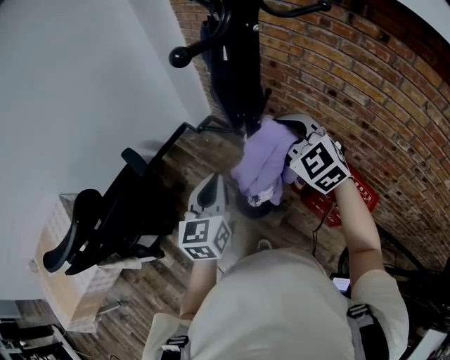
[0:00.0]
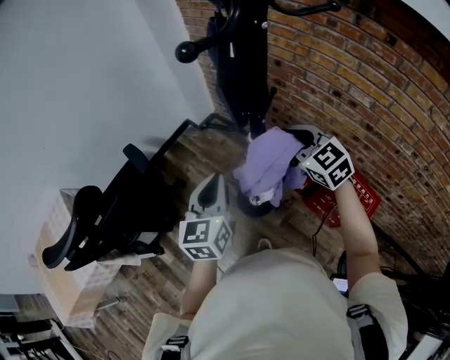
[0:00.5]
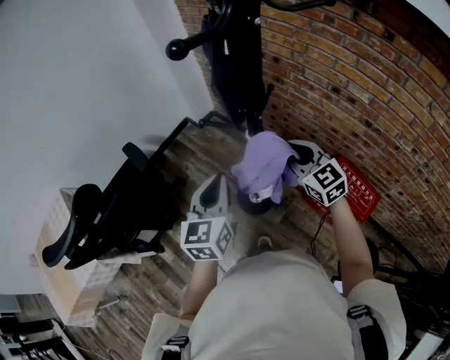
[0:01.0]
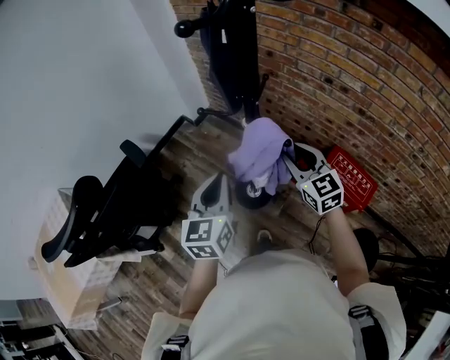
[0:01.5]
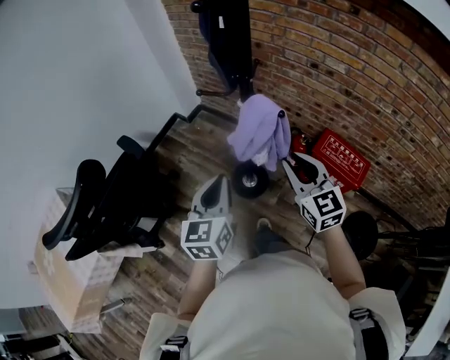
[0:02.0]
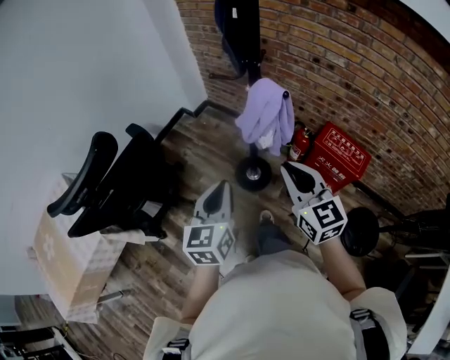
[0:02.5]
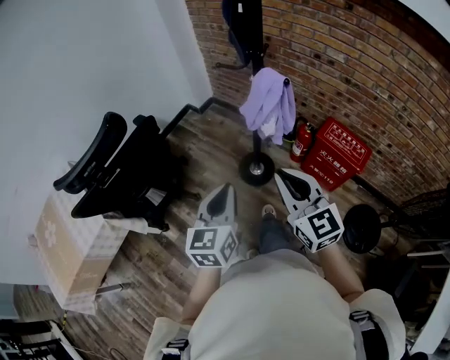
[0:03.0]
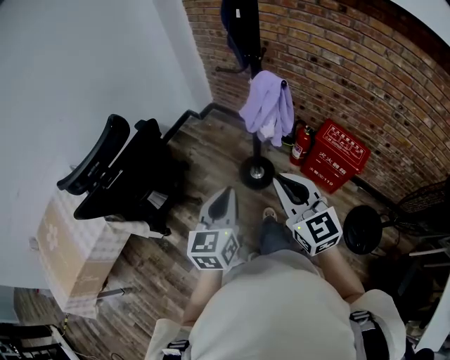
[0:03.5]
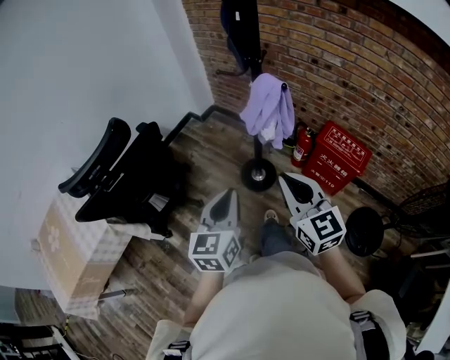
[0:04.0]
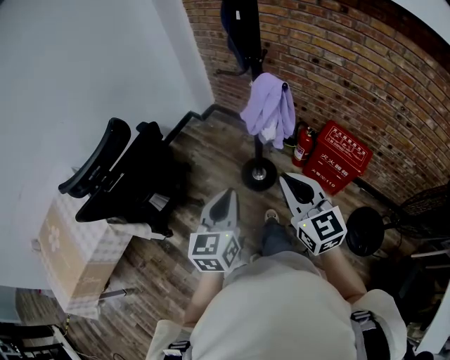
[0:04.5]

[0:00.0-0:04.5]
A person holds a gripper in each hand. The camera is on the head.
0:00.0 to 0:02.0: The left gripper goes approximately 10 cm backward, while the right gripper is displaced backward by about 20 cm, and turns by roughly 40 degrees.
0:02.0 to 0:04.5: The left gripper moves backward, roughly 15 cm; the right gripper heads backward and to the left, covering some 20 cm.

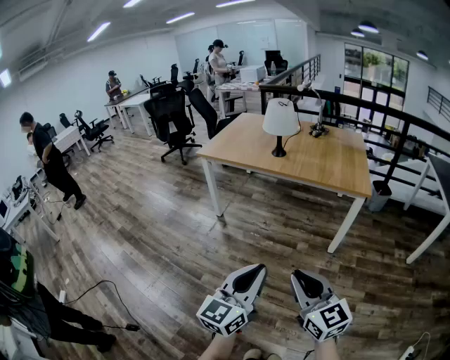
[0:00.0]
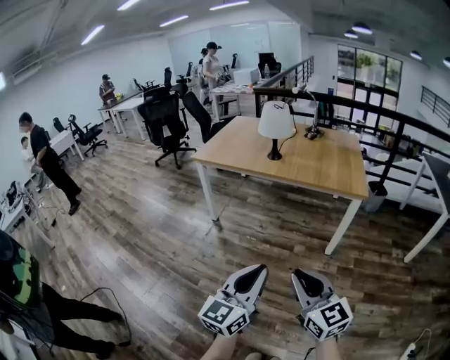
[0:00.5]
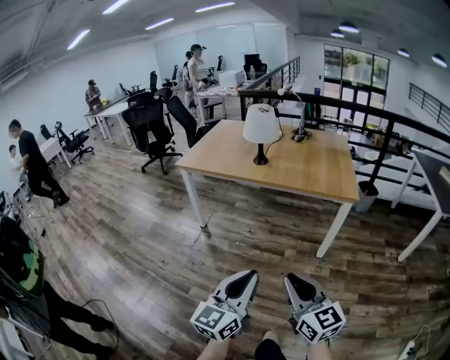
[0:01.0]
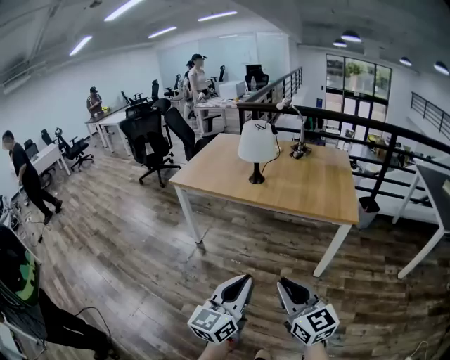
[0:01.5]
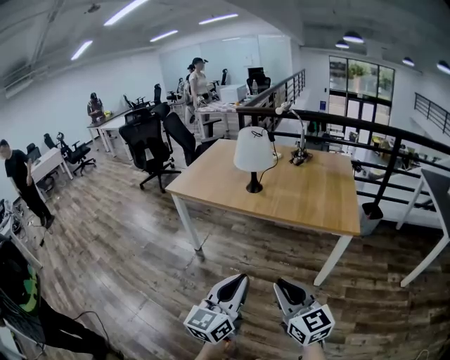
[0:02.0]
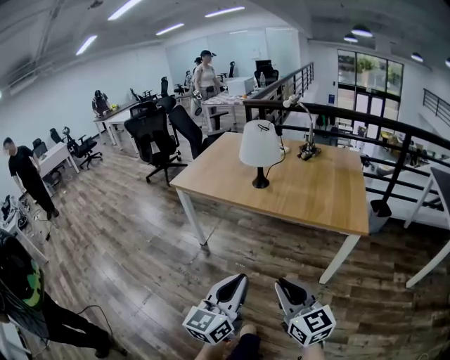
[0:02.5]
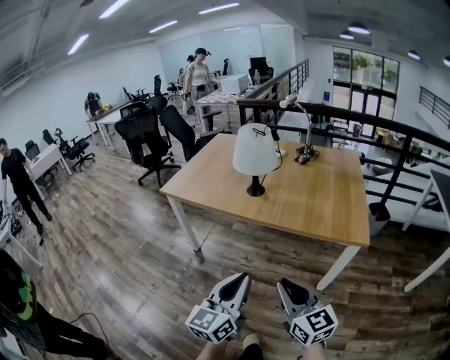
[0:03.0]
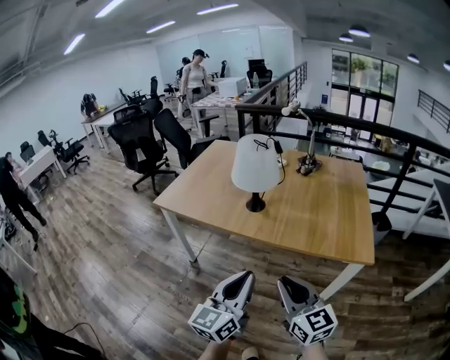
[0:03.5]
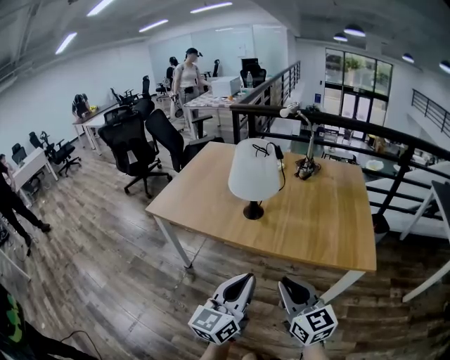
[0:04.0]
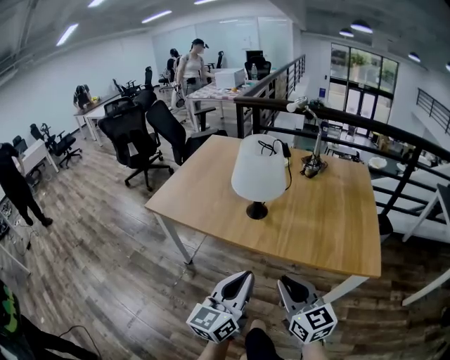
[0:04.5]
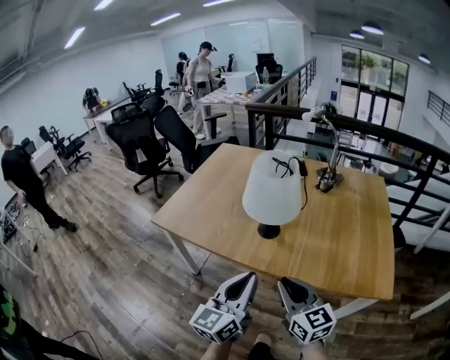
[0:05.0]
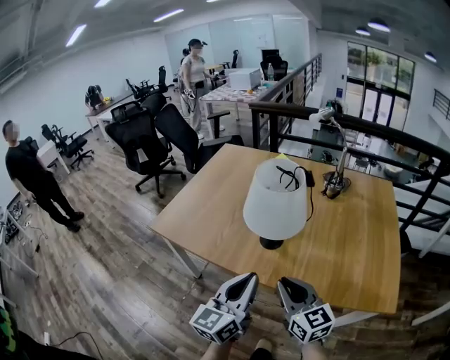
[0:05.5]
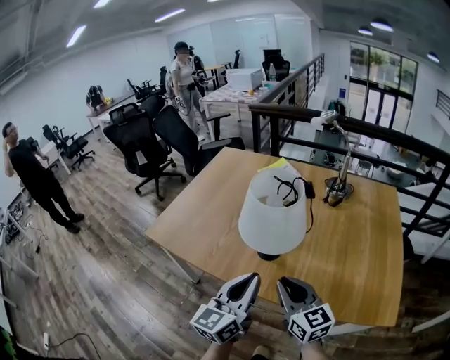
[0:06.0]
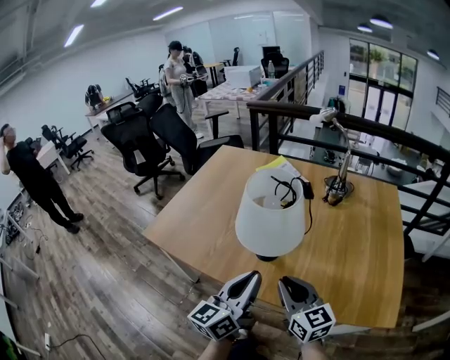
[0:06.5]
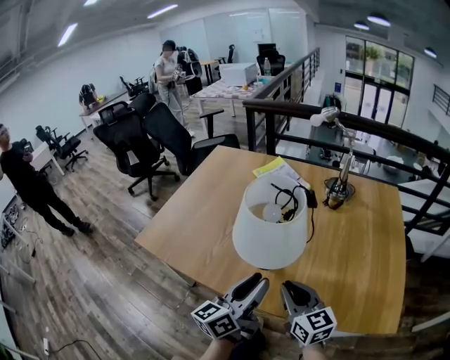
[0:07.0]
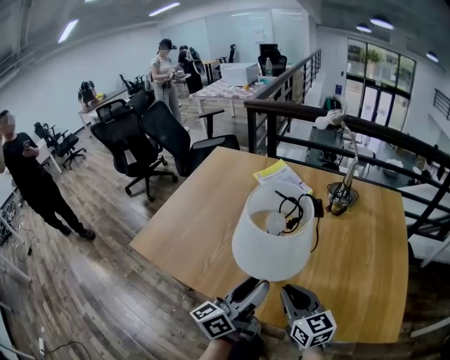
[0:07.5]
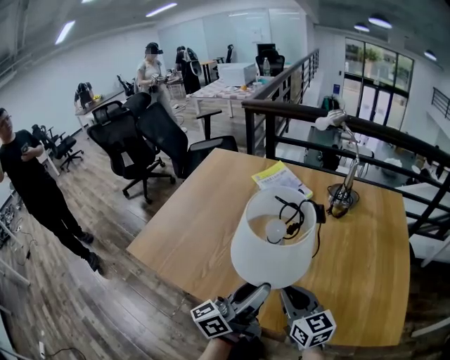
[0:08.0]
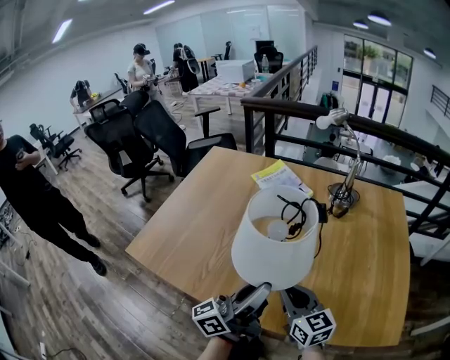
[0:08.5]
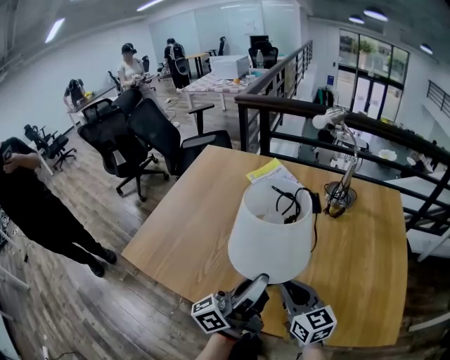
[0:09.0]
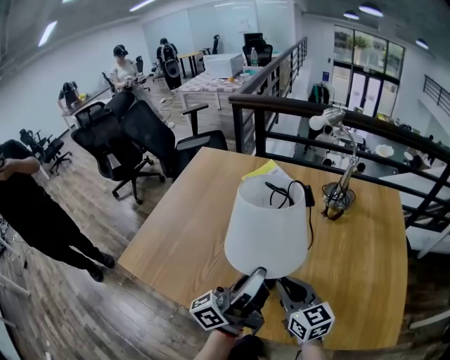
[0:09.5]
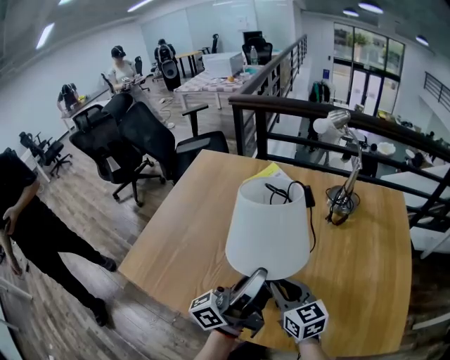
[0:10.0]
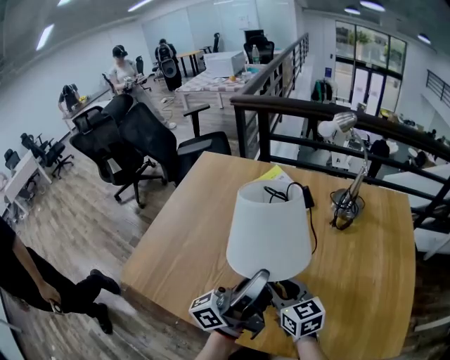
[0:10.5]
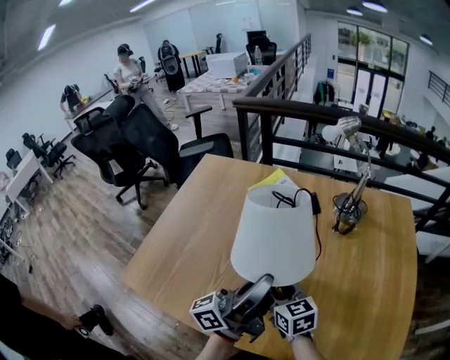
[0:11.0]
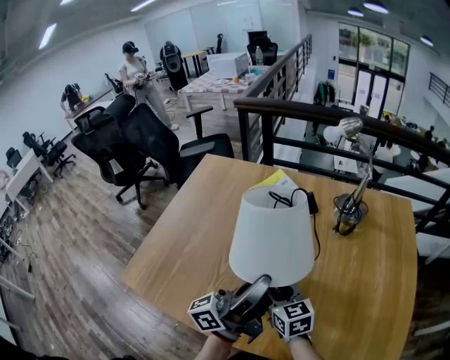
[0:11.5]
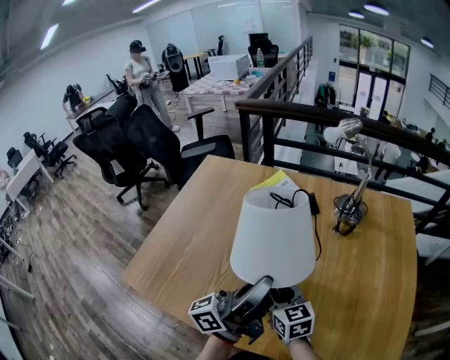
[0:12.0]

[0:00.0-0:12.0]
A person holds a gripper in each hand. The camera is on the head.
0:00.0 to 0:02.0: The two grippers go approximately 20 cm forward.
0:02.0 to 0:04.0: The two grippers go about 25 cm forward.
0:04.0 to 0:06.0: Both grippers move forward, some 25 cm.
0:06.0 to 0:08.0: The right gripper is displaced forward and downward by roughly 10 cm. The left gripper goes roughly 10 cm forward, changes its angle by approximately 40 degrees, and opens up.
0:08.0 to 0:10.0: The left gripper is displaced forward and upward by approximately 10 cm, and closes its fingers; the right gripper heads forward, covering about 10 cm.
0:10.0 to 0:12.0: The right gripper ends up roughly 5 cm from where it was, and opens up.

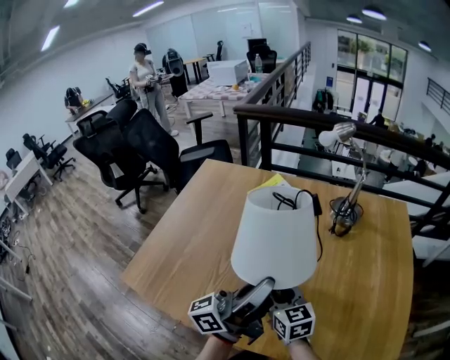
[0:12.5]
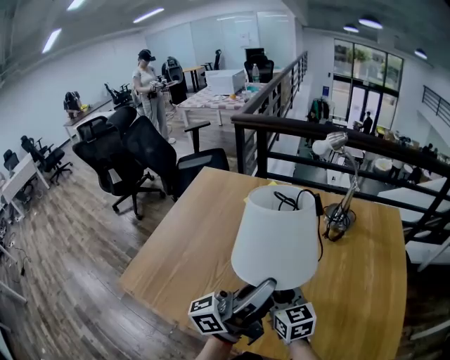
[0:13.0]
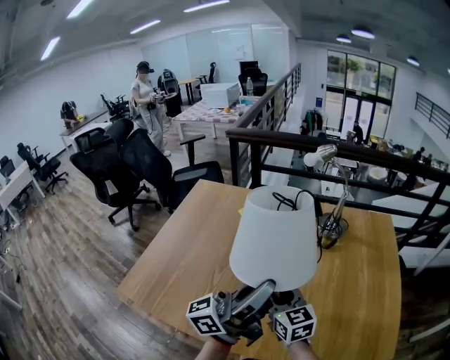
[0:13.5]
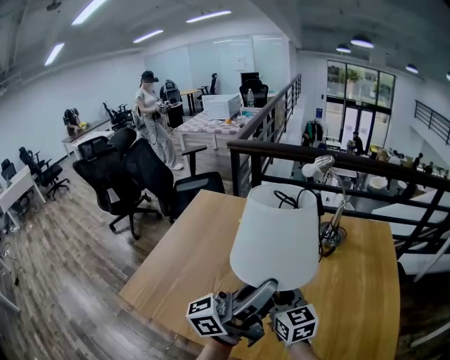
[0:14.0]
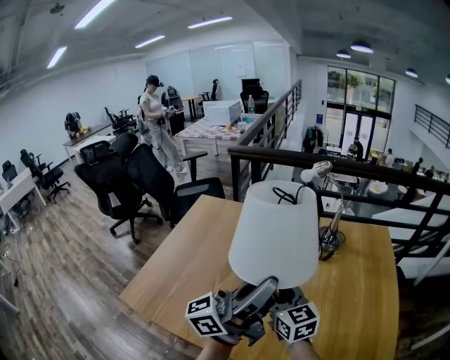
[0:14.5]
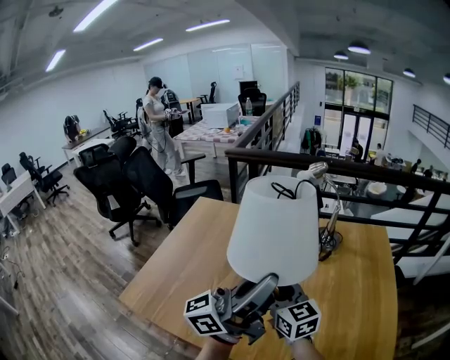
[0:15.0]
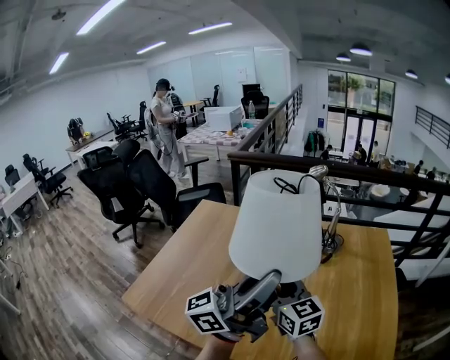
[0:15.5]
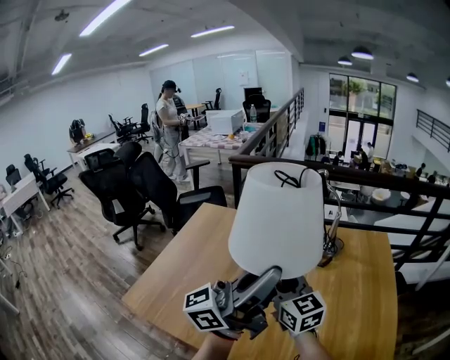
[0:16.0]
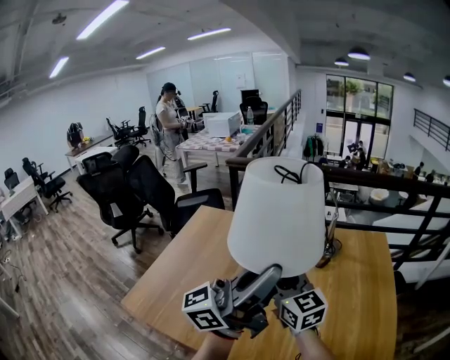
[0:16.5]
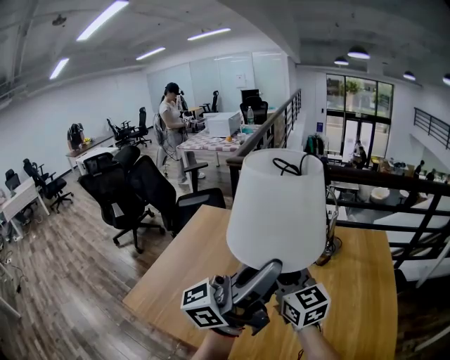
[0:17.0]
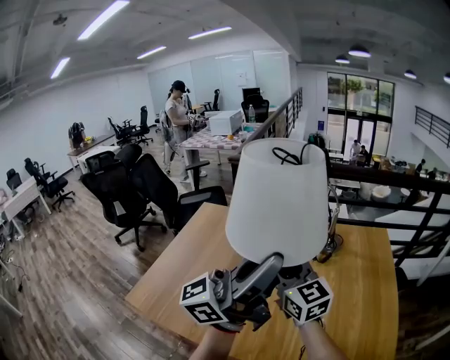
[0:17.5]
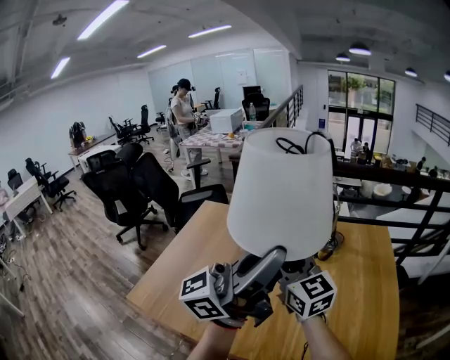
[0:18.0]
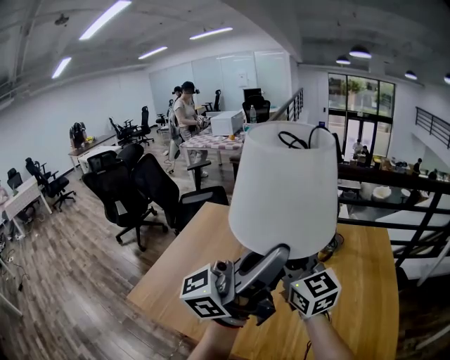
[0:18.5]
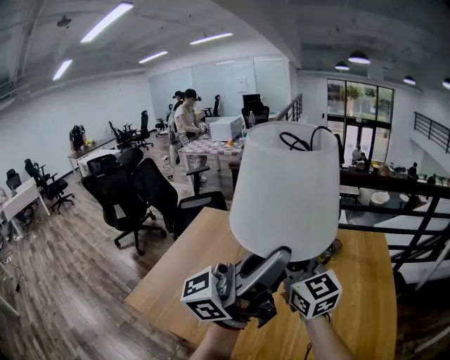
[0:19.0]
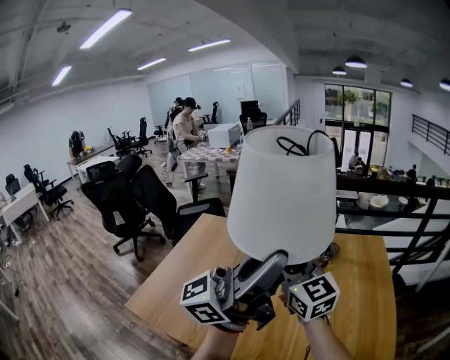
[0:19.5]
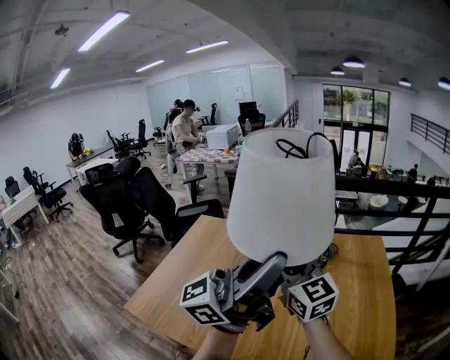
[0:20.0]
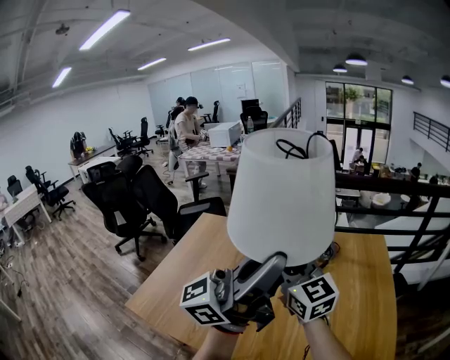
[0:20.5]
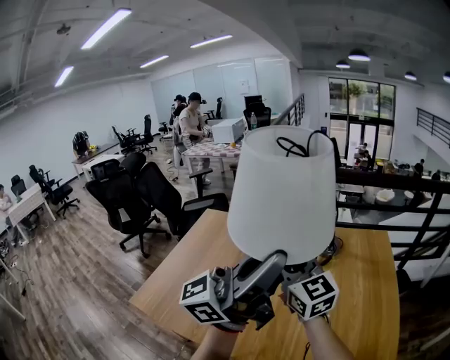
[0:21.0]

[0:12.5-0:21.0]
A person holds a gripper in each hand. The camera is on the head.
0:12.5 to 0:14.5: Both grippers travel together upward, about 10 cm.
0:14.5 to 0:16.5: The grippers both shift upward by approximately 10 cm.
0:16.5 to 0:19.0: The two grippers go roughly 10 cm upward.
0:19.0 to 0:21.0: The grippers move only a little.

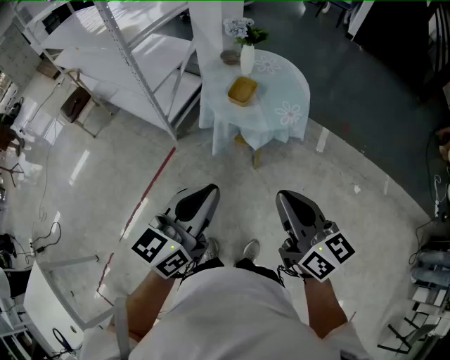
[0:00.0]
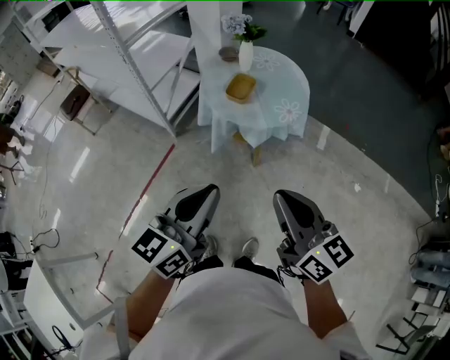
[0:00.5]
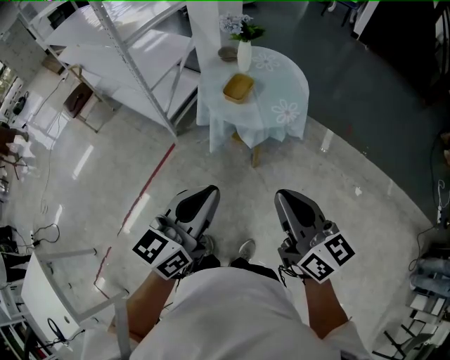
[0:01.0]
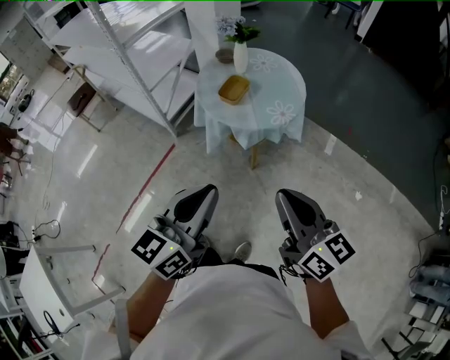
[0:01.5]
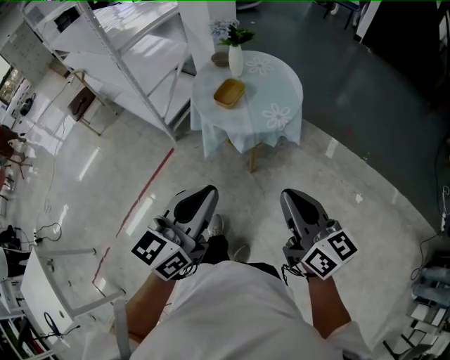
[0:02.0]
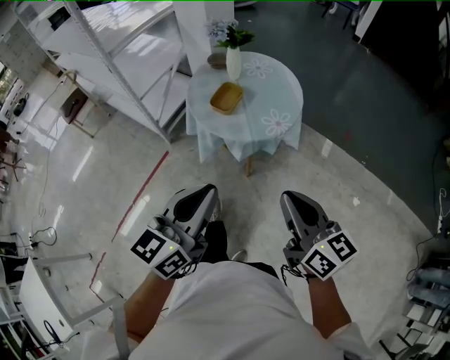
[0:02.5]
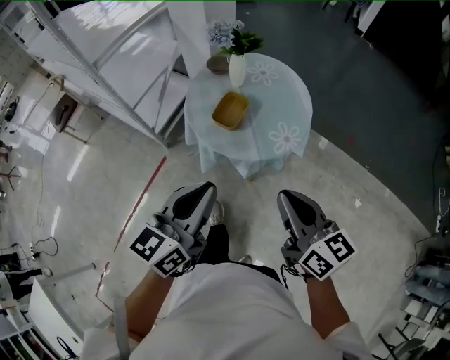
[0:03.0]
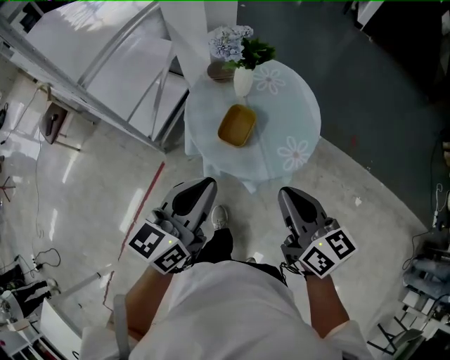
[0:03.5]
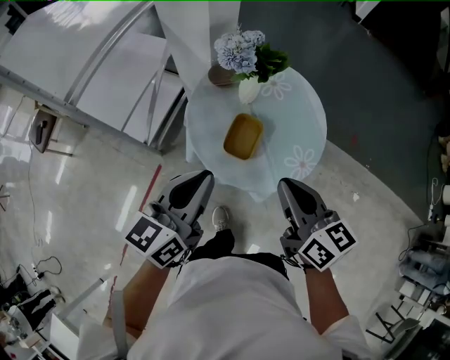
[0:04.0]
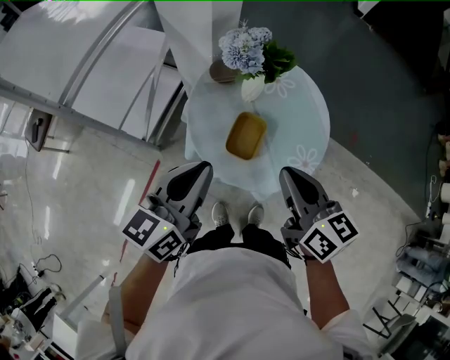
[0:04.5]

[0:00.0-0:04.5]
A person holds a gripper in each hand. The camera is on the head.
0:00.0 to 0:02.0: The grippers both shift to the right by roughly 15 cm.
0:02.0 to 0:04.5: Both grippers are carried forward and to the left, some 50 cm.
